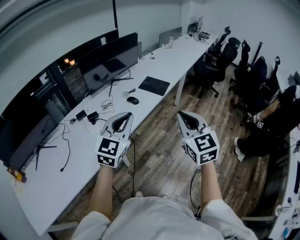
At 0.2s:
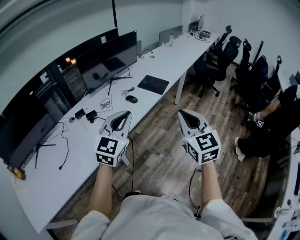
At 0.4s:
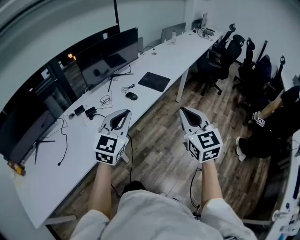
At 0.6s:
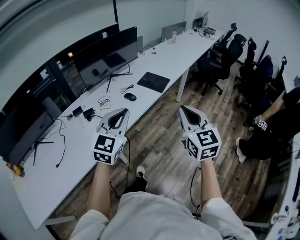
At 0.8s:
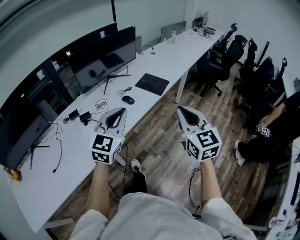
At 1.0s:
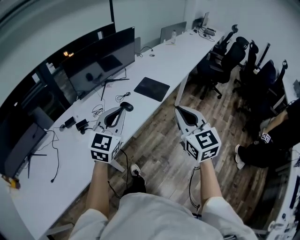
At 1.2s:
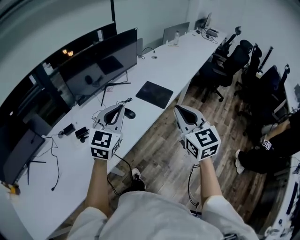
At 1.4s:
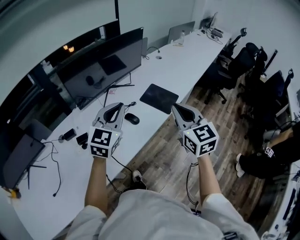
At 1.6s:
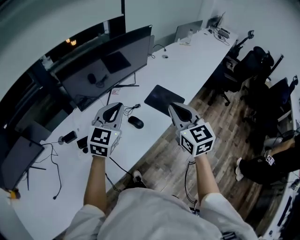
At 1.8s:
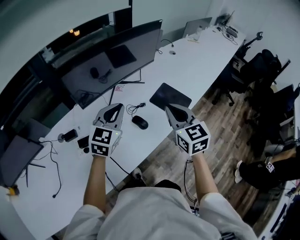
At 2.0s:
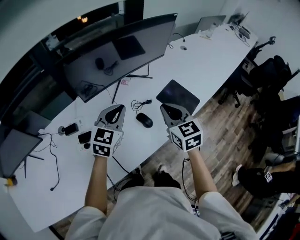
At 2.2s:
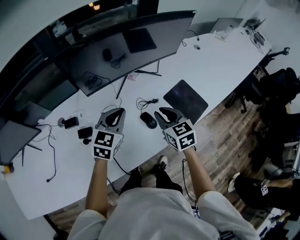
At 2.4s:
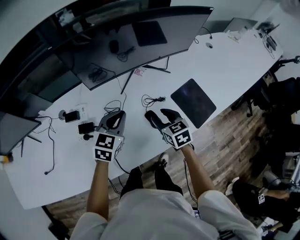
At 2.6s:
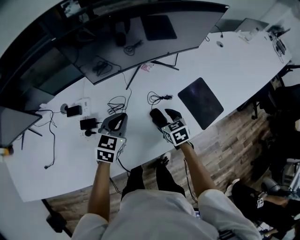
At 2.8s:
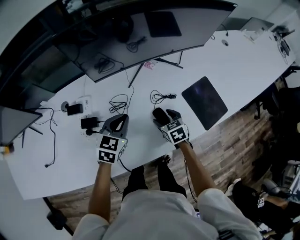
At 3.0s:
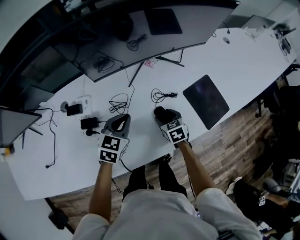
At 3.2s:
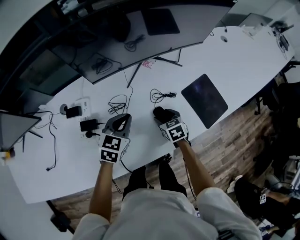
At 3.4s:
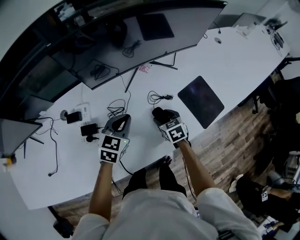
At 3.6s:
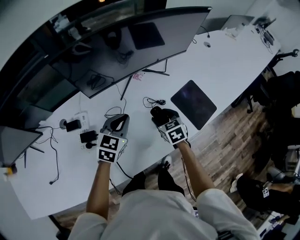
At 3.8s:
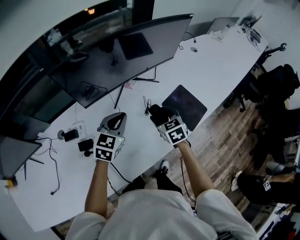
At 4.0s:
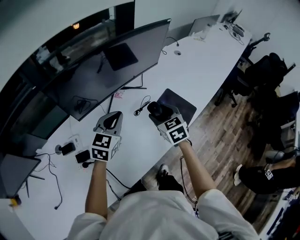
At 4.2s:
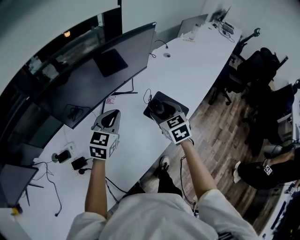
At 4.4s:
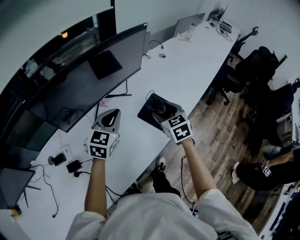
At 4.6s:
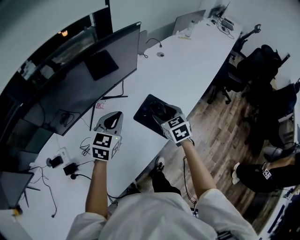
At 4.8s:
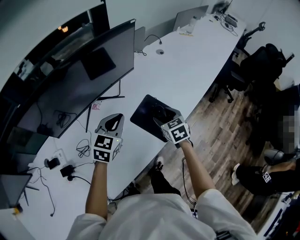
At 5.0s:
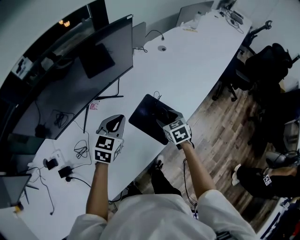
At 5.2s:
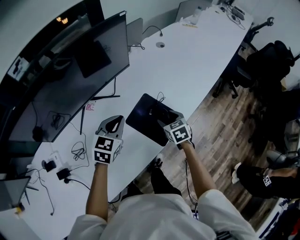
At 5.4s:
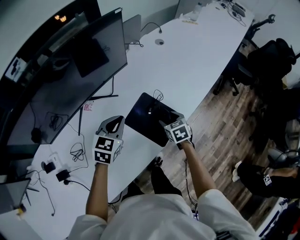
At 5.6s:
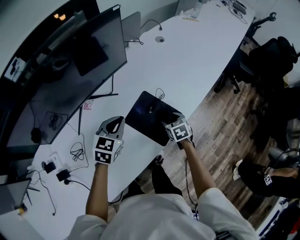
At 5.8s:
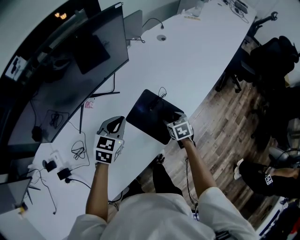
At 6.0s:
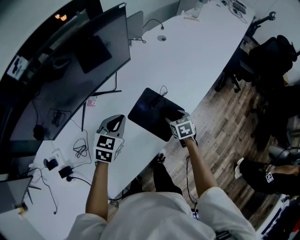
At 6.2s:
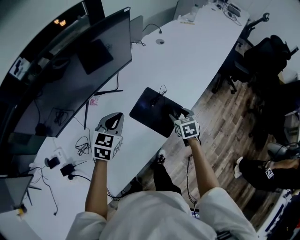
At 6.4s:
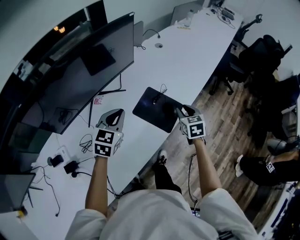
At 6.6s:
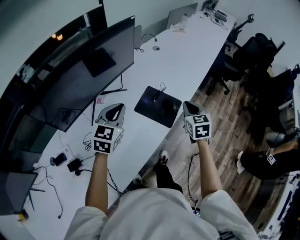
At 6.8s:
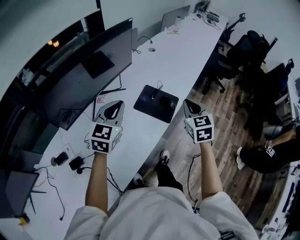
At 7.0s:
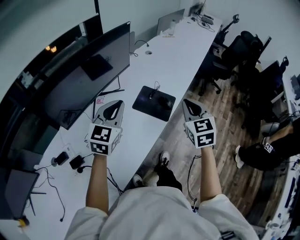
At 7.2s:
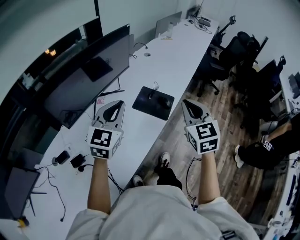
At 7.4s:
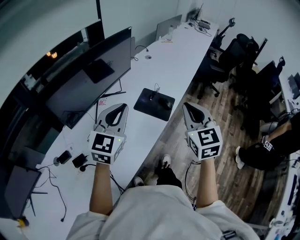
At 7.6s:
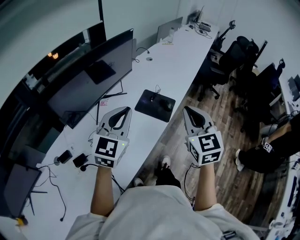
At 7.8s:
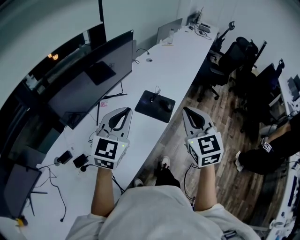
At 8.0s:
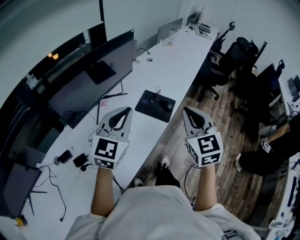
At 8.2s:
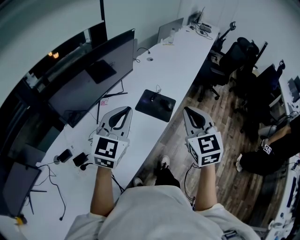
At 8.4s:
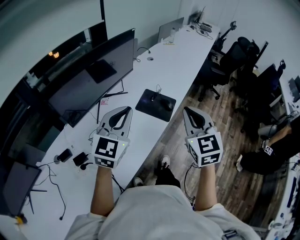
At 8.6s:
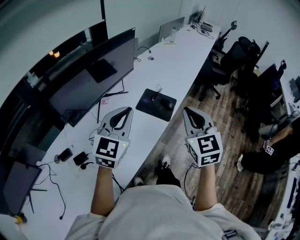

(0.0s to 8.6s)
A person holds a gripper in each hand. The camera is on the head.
0.0s - 1.4s: The grippers both shift forward by roughly 30 cm.
1.4s - 2.8s: The left gripper shifts approximately 25 cm downward, and rotates approximately 40 degrees. The right gripper heads downward, covering roughly 40 cm, angles its fingers downward, by about 40 degrees, and opens its fingers.
2.8s - 4.4s: The left gripper shifts approximately 25 cm to the right, upward and forward, and swivels approximately 30 degrees. The right gripper travels upward and to the right by about 30 cm, and swivels about 30 degrees.
4.4s - 5.8s: The right gripper shifts roughly 30 cm downward and to the right, and changes its angle by about 20 degrees. Meanwhile the left gripper goes about 20 cm downward, to the right and forward.
5.8s - 7.2s: The right gripper is displaced upward and backward by some 50 cm, points its fingers some 40 degrees further upward, and closes; the left gripper heads upward and backward, covering roughly 30 cm, and turns by some 30 degrees.
7.2s - 8.6s: Both grippers move backward, about 5 cm.

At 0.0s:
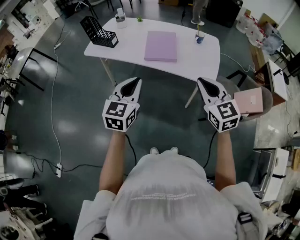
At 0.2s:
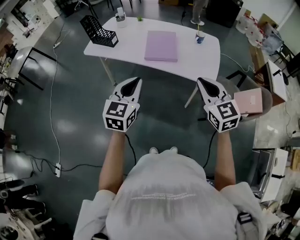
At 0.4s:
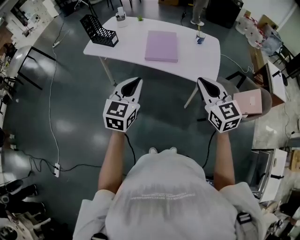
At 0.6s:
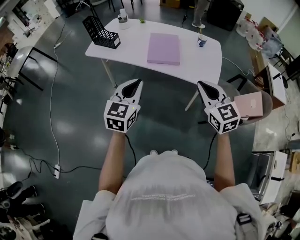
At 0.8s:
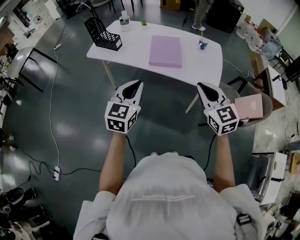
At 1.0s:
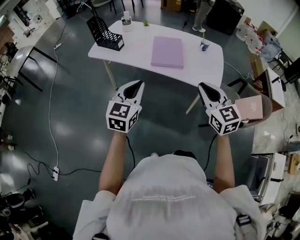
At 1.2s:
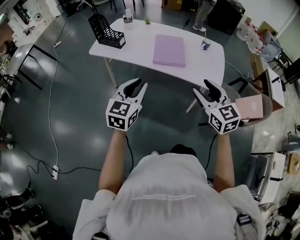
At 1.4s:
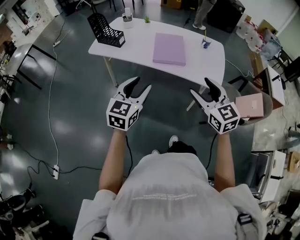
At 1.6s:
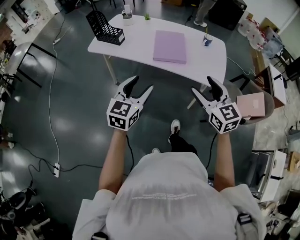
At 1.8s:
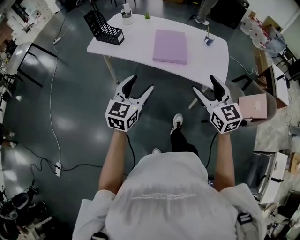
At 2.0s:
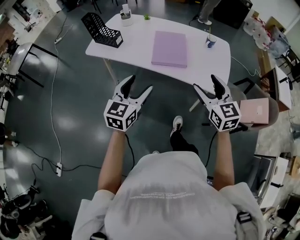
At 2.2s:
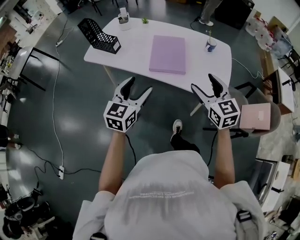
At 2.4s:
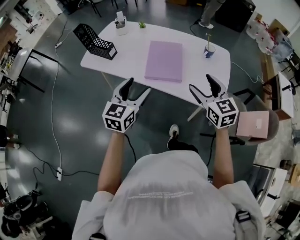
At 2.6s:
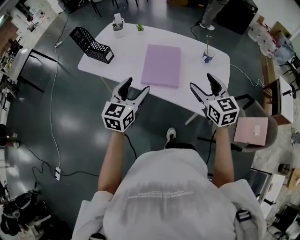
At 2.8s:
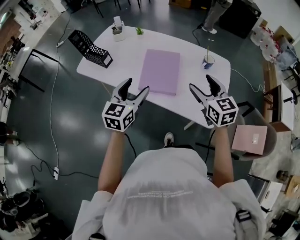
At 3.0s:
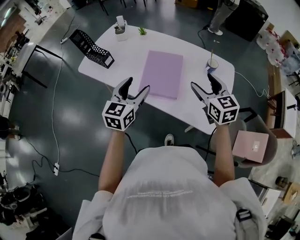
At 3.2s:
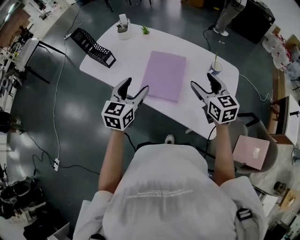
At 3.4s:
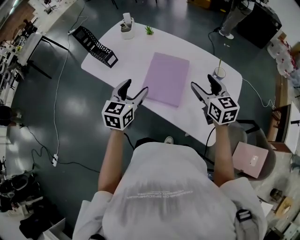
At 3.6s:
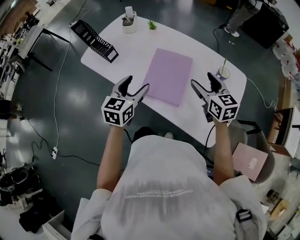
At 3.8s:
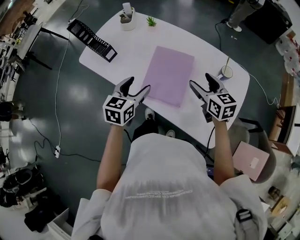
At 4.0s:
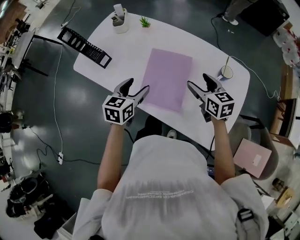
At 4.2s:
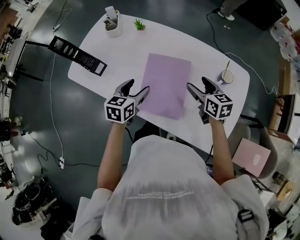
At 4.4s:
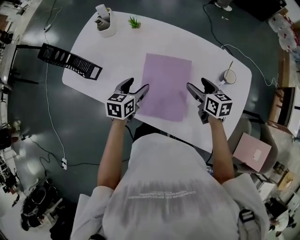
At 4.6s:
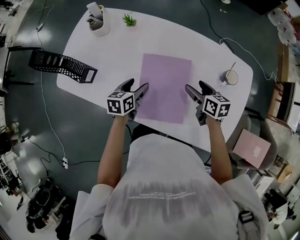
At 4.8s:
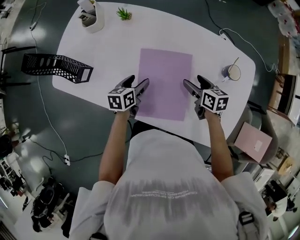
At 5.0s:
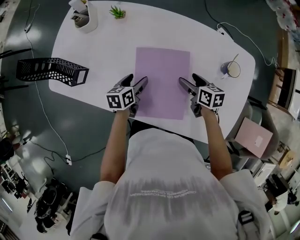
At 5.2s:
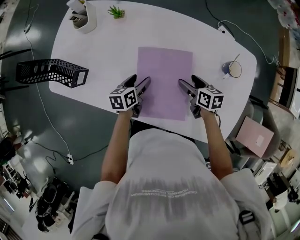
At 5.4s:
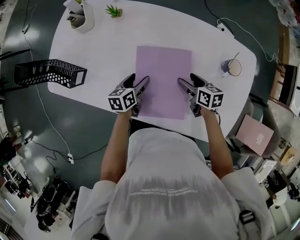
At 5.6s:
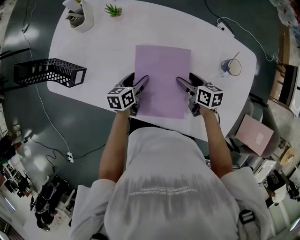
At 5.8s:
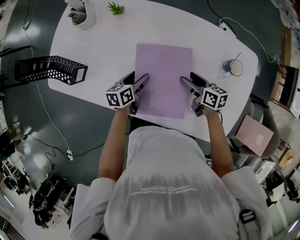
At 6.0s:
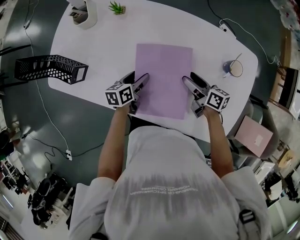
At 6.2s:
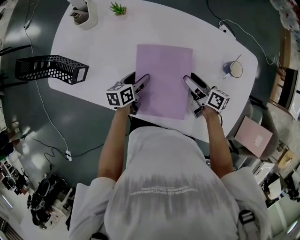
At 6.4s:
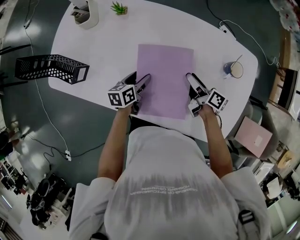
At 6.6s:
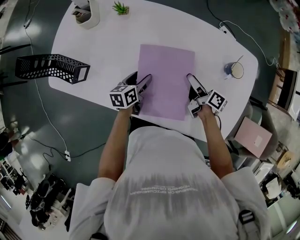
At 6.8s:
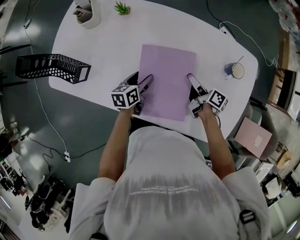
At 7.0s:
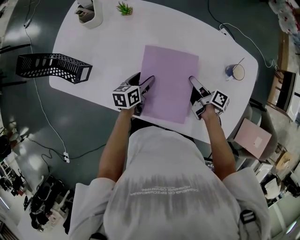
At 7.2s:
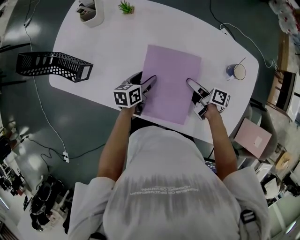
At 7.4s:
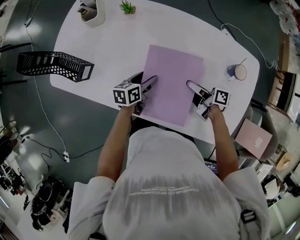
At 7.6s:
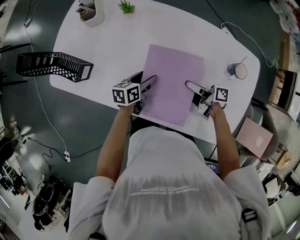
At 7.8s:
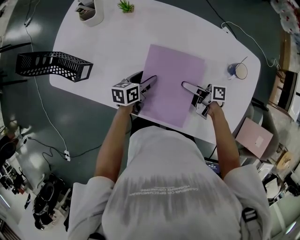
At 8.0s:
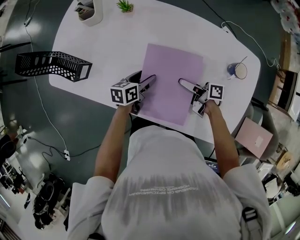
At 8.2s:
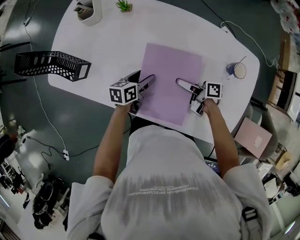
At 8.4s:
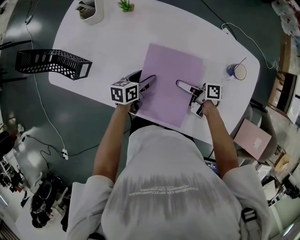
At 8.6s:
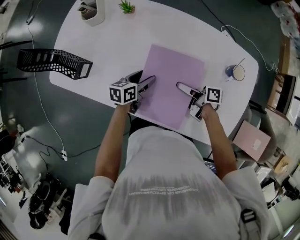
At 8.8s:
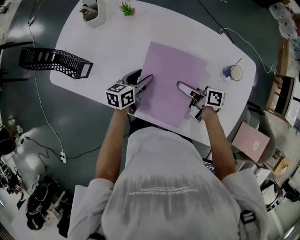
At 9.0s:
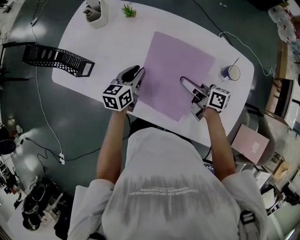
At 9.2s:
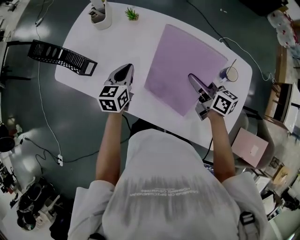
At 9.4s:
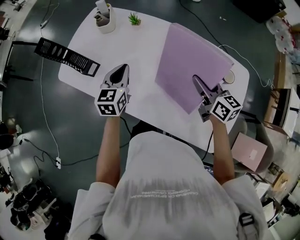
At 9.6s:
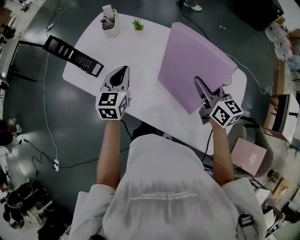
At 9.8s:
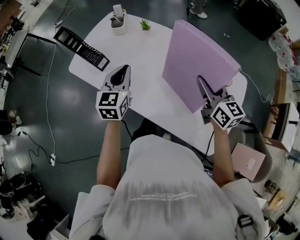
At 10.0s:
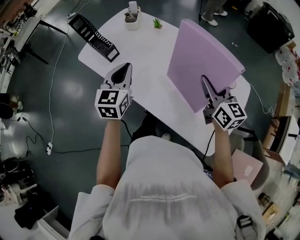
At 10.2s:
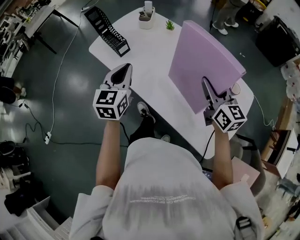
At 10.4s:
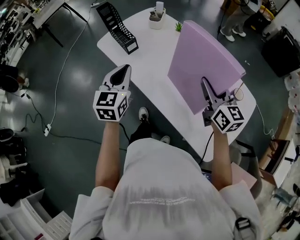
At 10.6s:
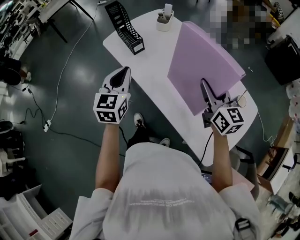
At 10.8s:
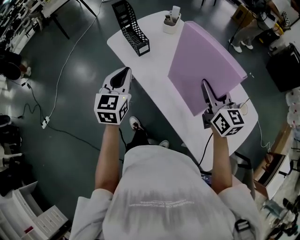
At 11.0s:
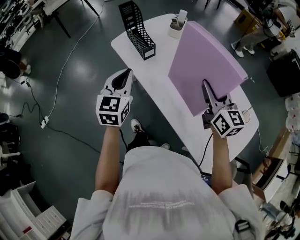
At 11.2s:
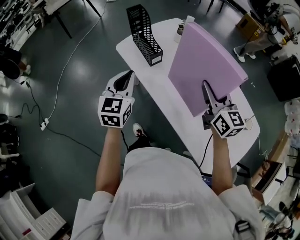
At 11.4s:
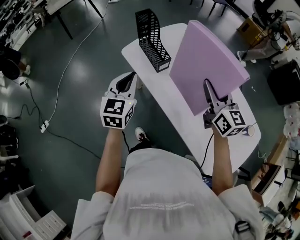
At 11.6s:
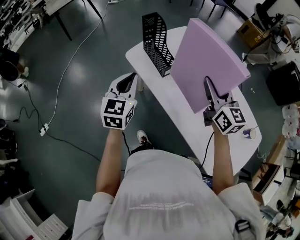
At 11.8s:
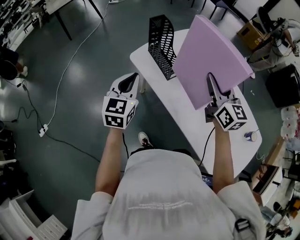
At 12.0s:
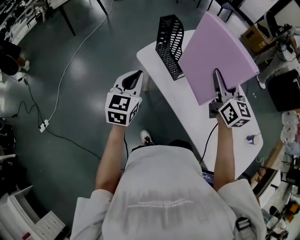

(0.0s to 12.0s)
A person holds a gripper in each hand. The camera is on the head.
0.0s - 1.6s: Both grippers move to the left, approximately 5 cm. The left gripper opens, while the right gripper opens up.
1.6s - 3.0s: The two grippers go approximately 30 cm forward.
3.0s - 4.4s: The left gripper moves forward and downward, about 25 cm, and changes its angle by some 30 degrees. Meanwhile the right gripper goes about 25 cm downward and forward, and swivels roughly 30 degrees.
4.4s - 6.0s: The left gripper heads downward, covering about 10 cm, and changes its angle by about 20 degrees, while the right gripper shifts roughly 5 cm downward, and changes its angle by about 30 degrees.
6.0s - 7.6s: The right gripper swivels approximately 20 degrees.
7.6s - 9.0s: Both grippers travel together upward, roughly 10 cm. The left gripper rotates about 20 degrees, and closes. Meanwhile the right gripper swivels about 20 degrees.
9.0s - 10.4s: The right gripper goes approximately 20 cm upward, and rolls counterclockwise, seen from behind, by some 50 degrees; the left gripper goes about 30 cm upward, to the left and backward, and turns by approximately 50 degrees.
10.4s - 12.0s: Both grippers move to the left and forward, some 30 cm.

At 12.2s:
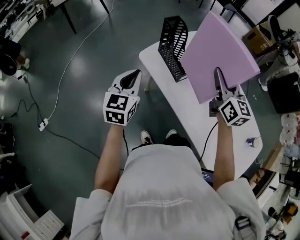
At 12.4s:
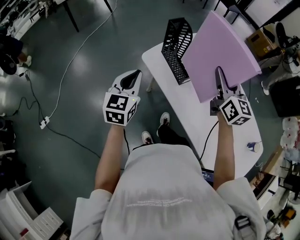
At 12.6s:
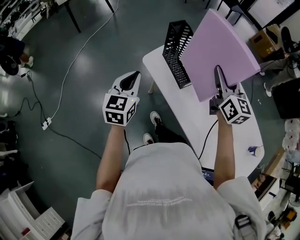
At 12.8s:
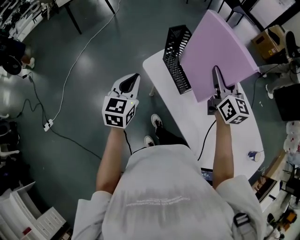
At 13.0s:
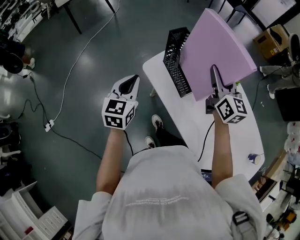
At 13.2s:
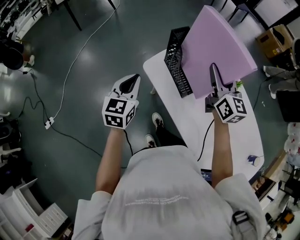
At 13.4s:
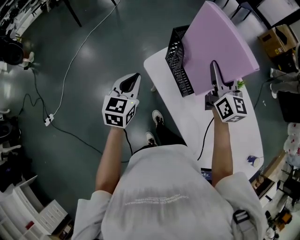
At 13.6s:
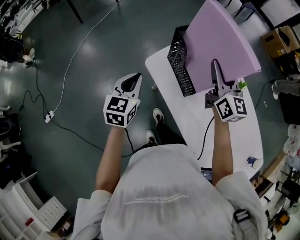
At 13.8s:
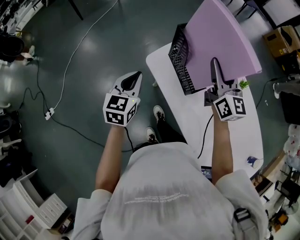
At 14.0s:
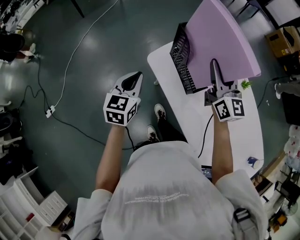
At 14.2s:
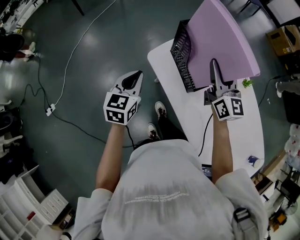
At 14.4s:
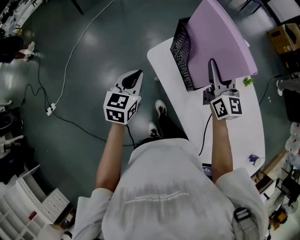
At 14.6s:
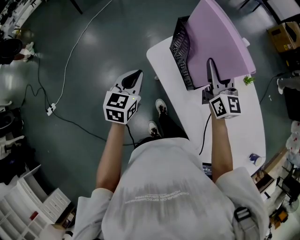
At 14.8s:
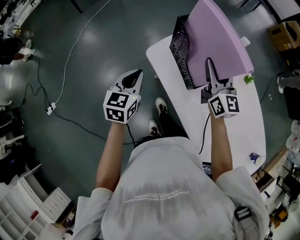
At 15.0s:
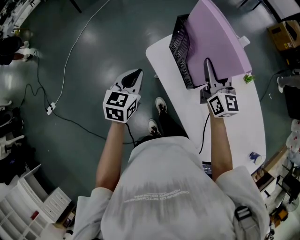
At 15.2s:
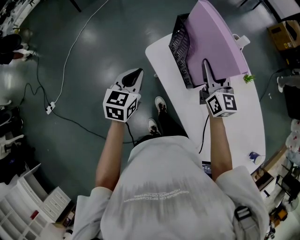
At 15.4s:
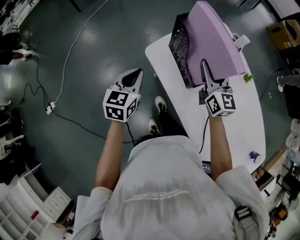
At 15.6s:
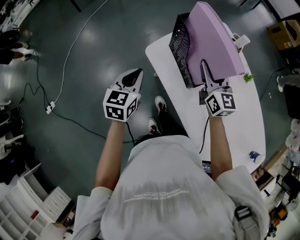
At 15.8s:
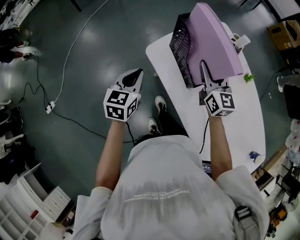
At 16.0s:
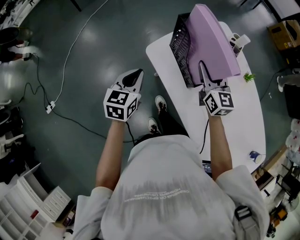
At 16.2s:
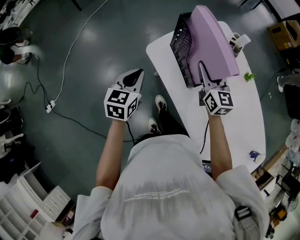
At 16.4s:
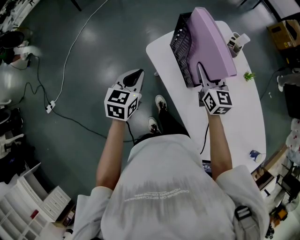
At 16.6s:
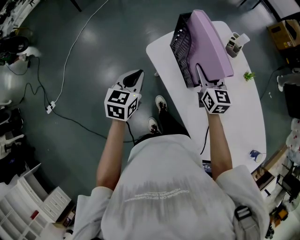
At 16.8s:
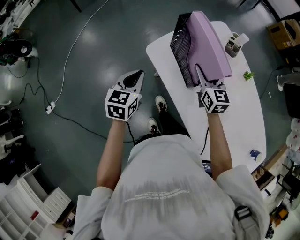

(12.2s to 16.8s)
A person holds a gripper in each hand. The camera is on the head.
12.2s - 13.8s: The right gripper is displaced forward and to the left by about 15 cm. The left gripper shifts roughly 10 cm forward and downward.
13.8s - 15.2s: The right gripper travels downward by approximately 10 cm.
15.2s - 16.8s: The right gripper is displaced downward by roughly 5 cm.
